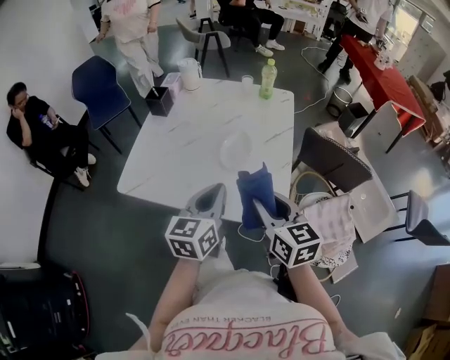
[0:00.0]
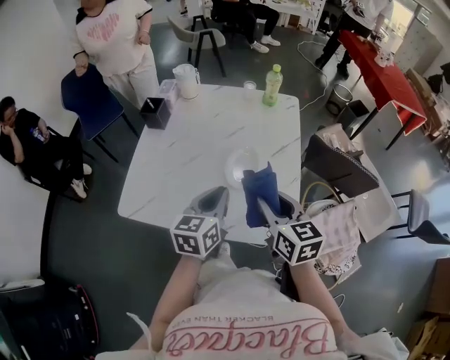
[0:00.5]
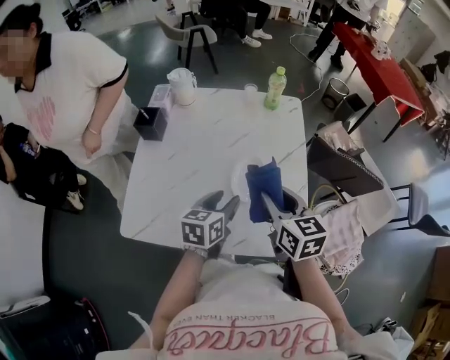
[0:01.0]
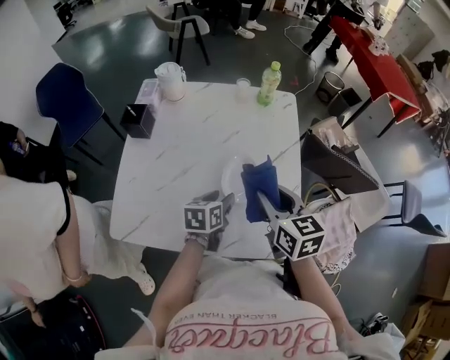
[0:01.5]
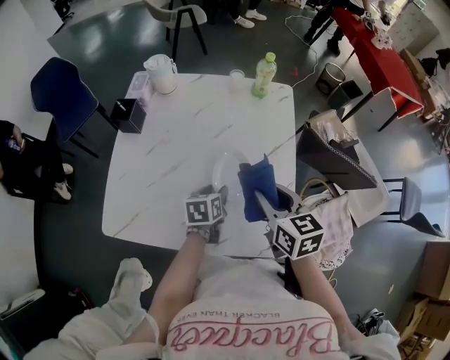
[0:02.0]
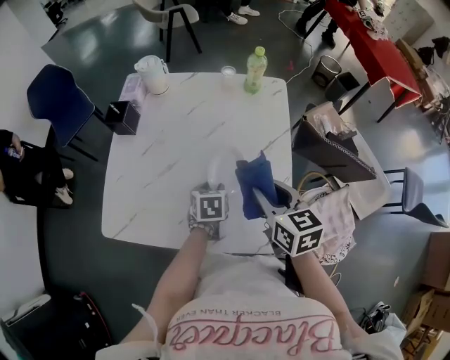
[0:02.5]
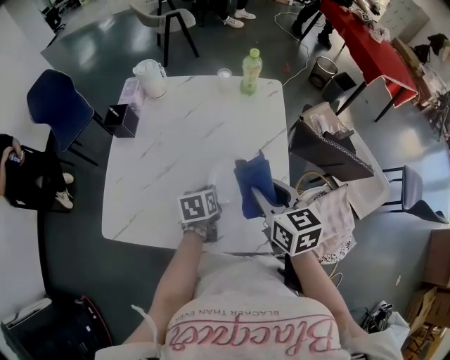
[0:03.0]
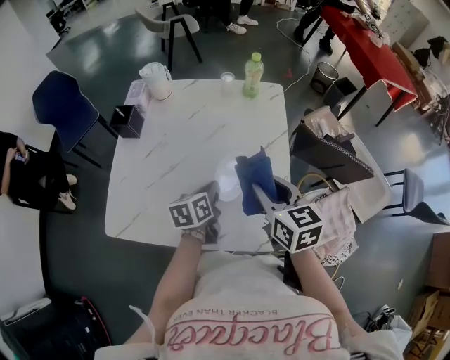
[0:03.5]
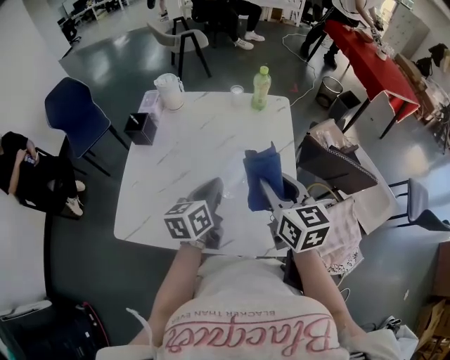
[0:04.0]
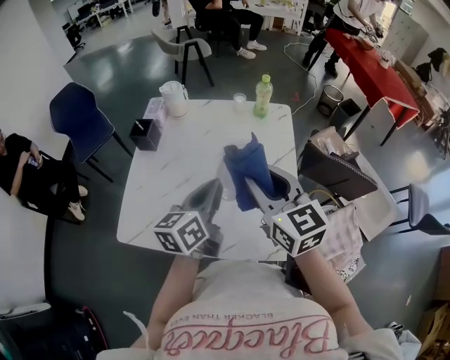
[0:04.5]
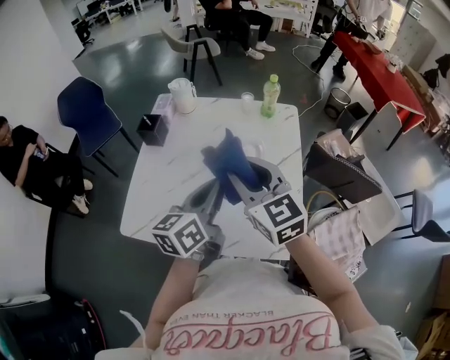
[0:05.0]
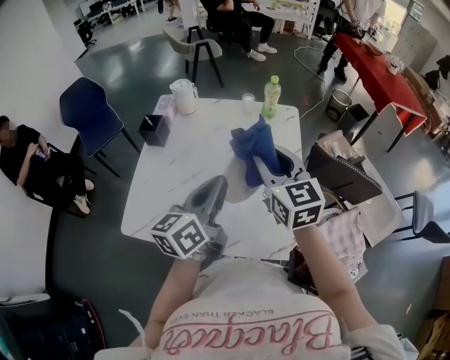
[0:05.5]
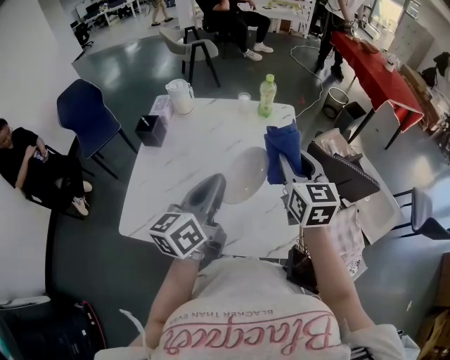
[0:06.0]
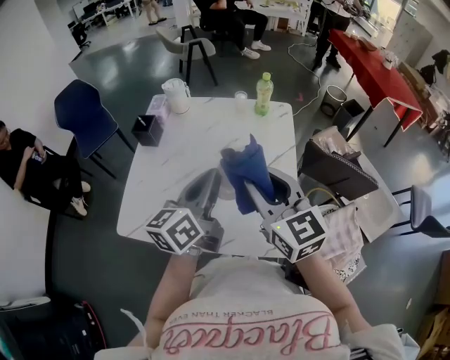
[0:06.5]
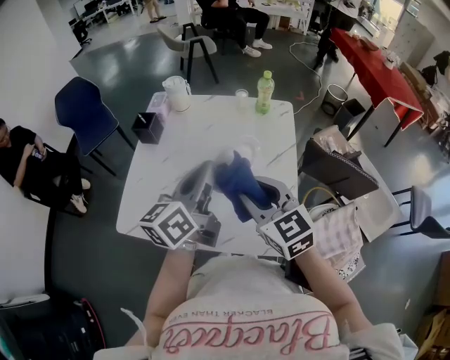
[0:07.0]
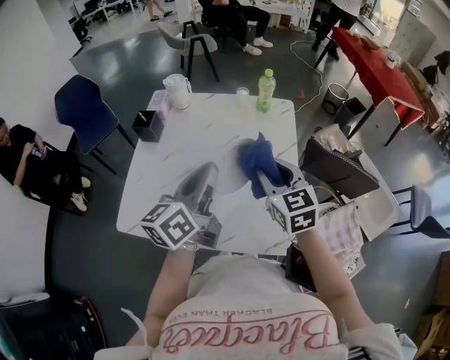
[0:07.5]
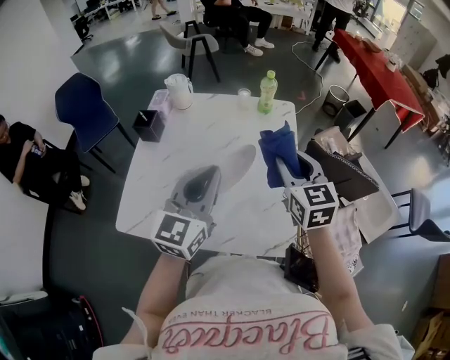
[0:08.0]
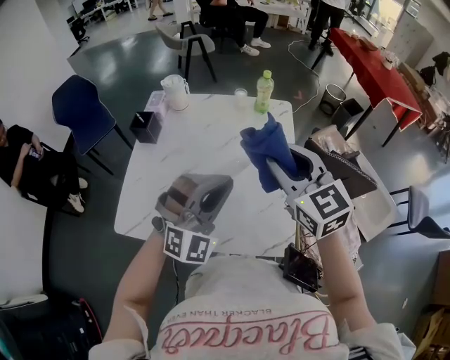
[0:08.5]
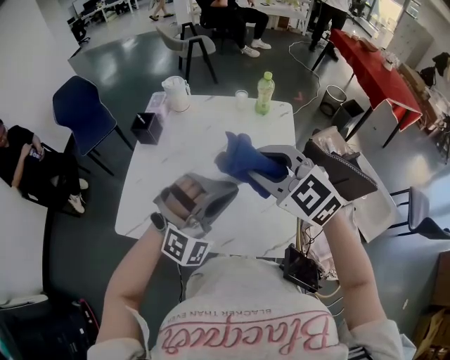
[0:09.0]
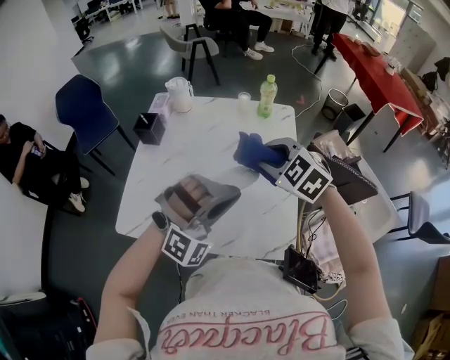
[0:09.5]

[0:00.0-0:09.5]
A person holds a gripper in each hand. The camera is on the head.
0.0 to 2.0 s: The left gripper is displaced downward and forward by some 30 cm, tips its fingers downward by roughly 30 degrees, and opens its fingers. Meanwhile the right gripper shifts approximately 20 cm forward.
2.0 to 4.0 s: The right gripper is displaced upward by roughly 5 cm, while the left gripper moves upward, approximately 15 cm, changes its angle by some 30 degrees, and closes its fingers.
4.0 to 5.5 s: The right gripper goes some 5 cm upward, while the left gripper is displaced upward by approximately 10 cm.
5.5 to 7.5 s: The right gripper goes left and right, some 10 cm each way, reversing 2 times.
7.5 to 9.5 s: The left gripper heads to the right and backward, covering some 10 cm, and rolls clockwise, seen from behind, by about 120 degrees, while the right gripper travels upward and back again, roughly 10 cm each way, and turns by approximately 40 degrees.

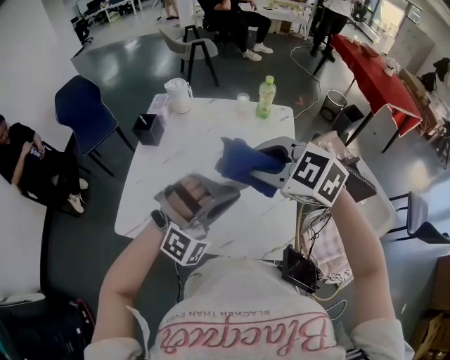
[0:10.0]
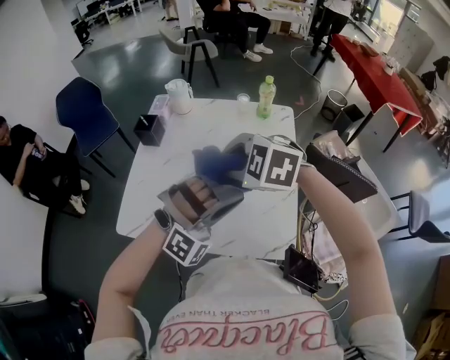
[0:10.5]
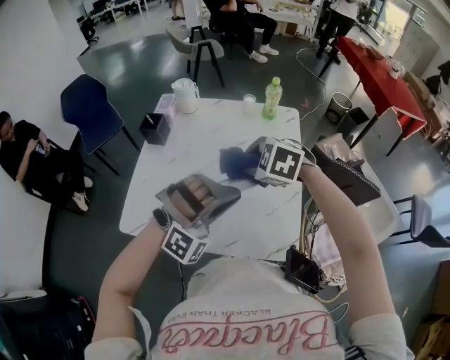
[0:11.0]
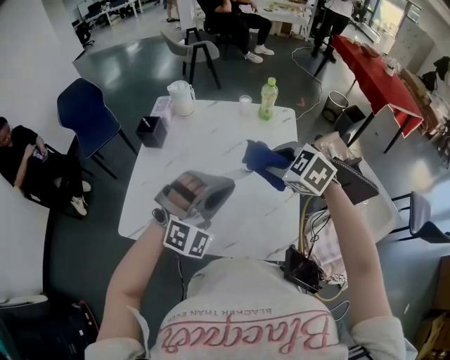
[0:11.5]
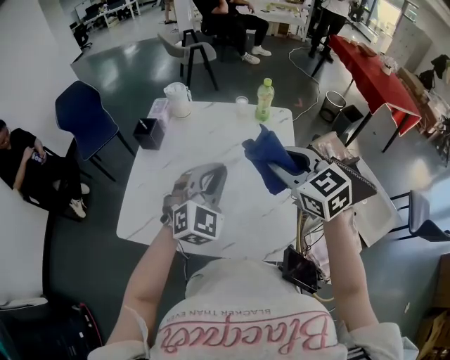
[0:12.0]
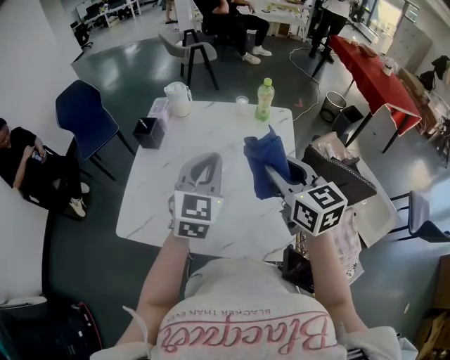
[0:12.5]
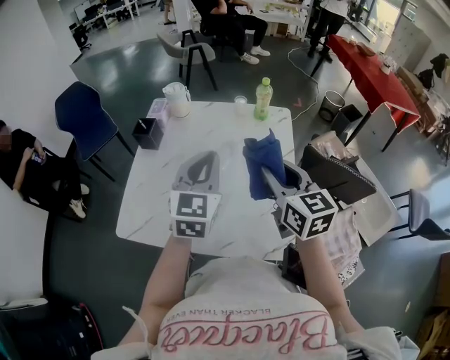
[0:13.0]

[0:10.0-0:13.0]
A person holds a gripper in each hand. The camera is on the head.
10.0 to 11.5 s: The right gripper shifts roughly 10 cm downward and to the right.
11.5 to 13.0 s: The left gripper moves forward, roughly 5 cm, and twists roughly 70 degrees counterclockwise, seen from behind; the right gripper heads upward, covering about 5 cm, and tips its fingers upward by approximately 30 degrees.

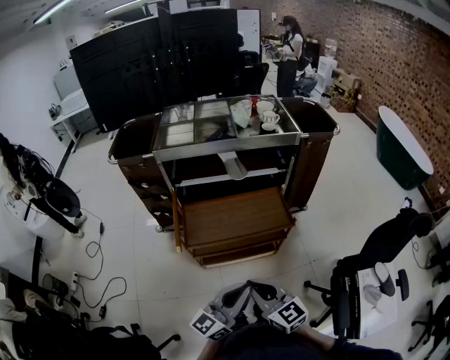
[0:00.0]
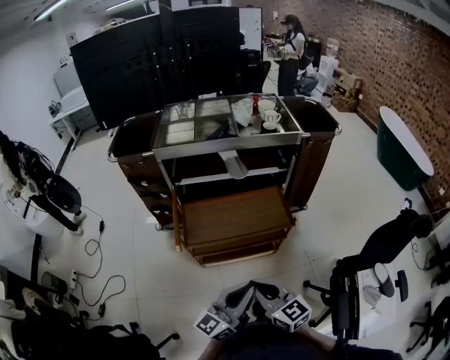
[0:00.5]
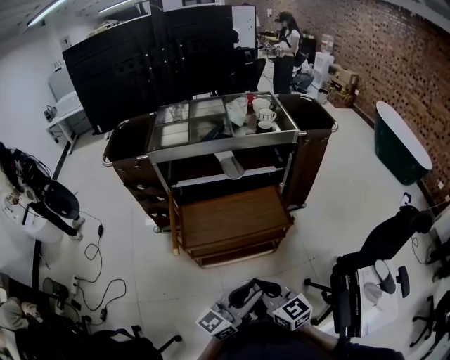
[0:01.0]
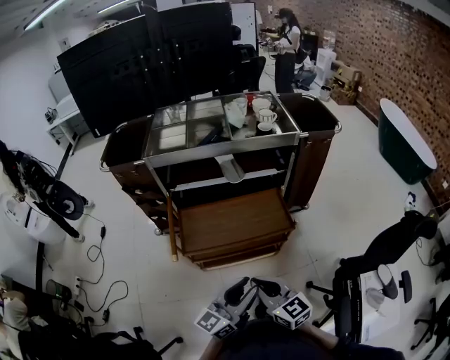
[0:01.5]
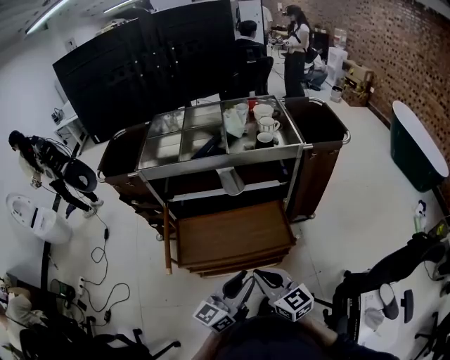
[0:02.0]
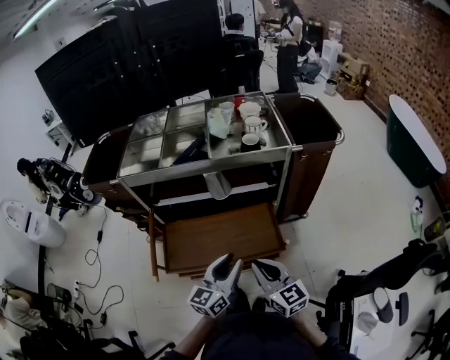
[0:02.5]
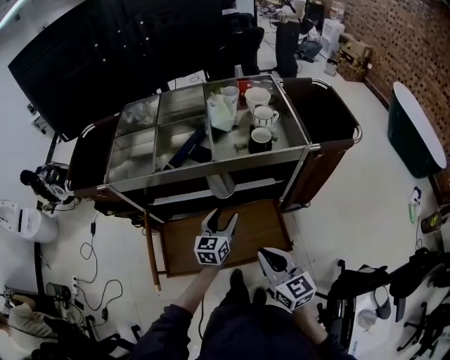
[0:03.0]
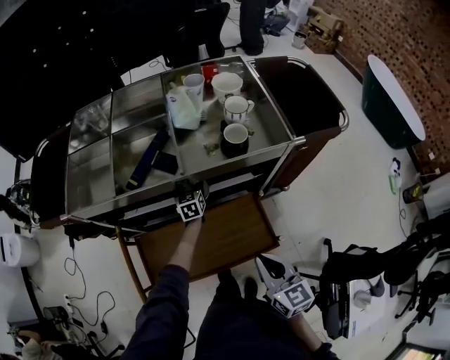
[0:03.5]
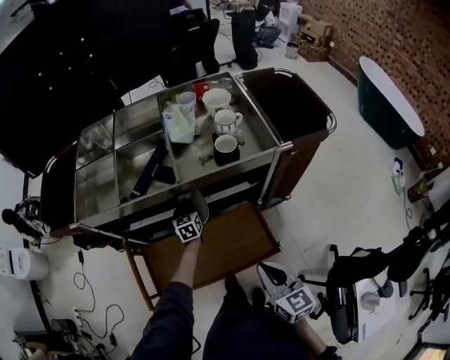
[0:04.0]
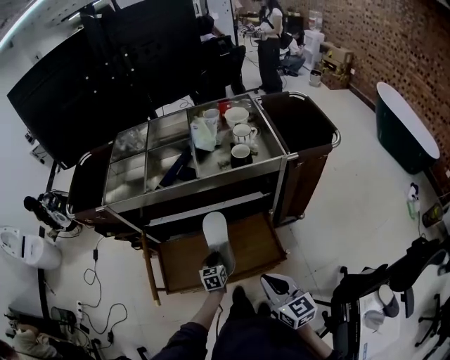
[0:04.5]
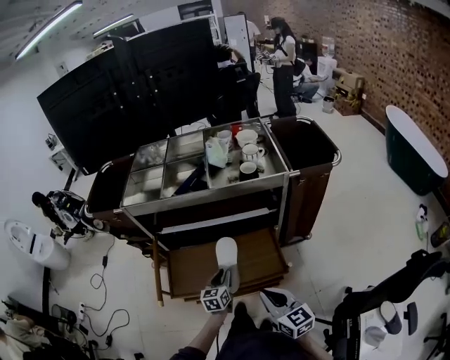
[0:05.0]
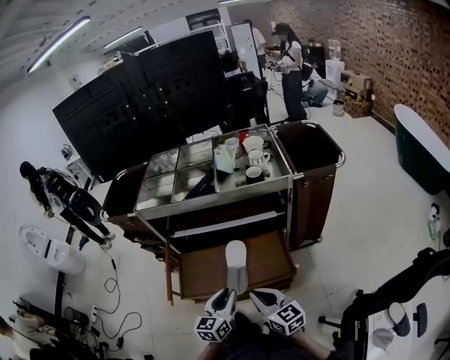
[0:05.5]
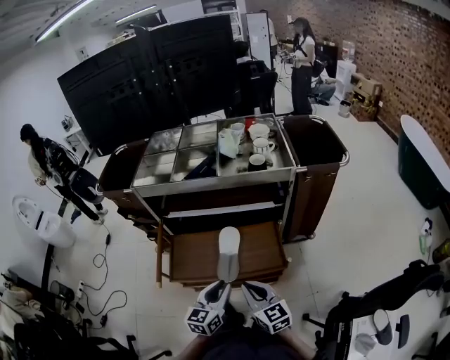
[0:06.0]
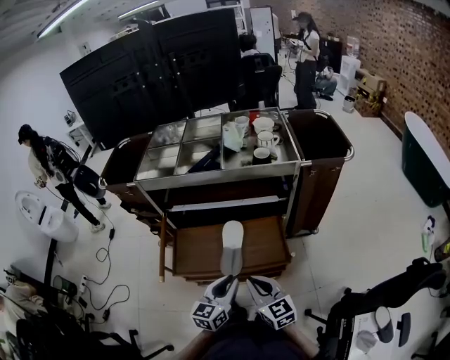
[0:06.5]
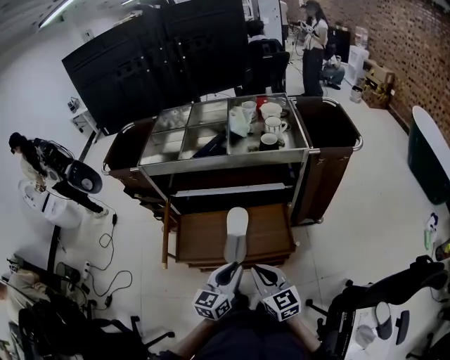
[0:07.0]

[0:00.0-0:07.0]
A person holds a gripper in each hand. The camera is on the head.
0.0 to 2.0 s: Both grippers travel together forward and to the right, approximately 20 cm. The left gripper opens.
2.0 to 3.5 s: The left gripper heads forward and downward, covering some 60 cm, tilts its fingers roughly 40 degrees downward, and opens up. Meanwhile the right gripper heads forward and to the right, covering some 20 cm, and changes its angle by roughly 20 degrees.
3.5 to 5.0 s: The right gripper heads backward, covering about 15 cm. Meanwhile the left gripper is displaced backward by about 35 cm, and closes up.
5.0 to 7.0 s: The left gripper goes approximately 20 cm upward and backward.

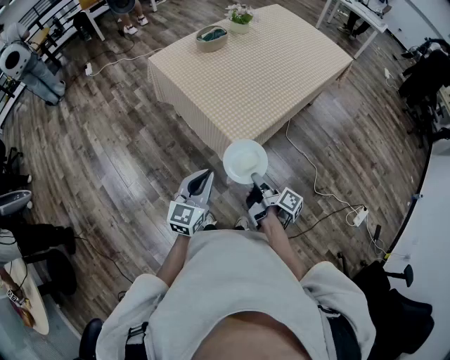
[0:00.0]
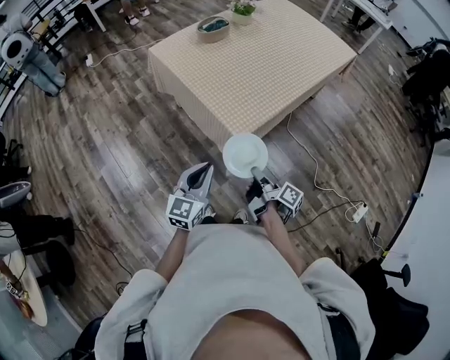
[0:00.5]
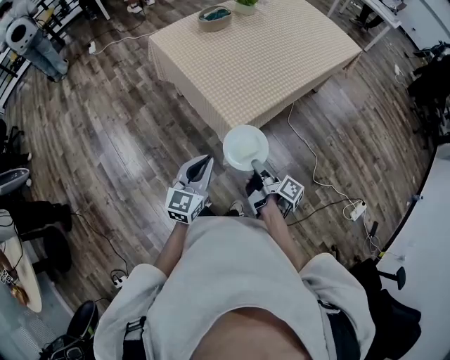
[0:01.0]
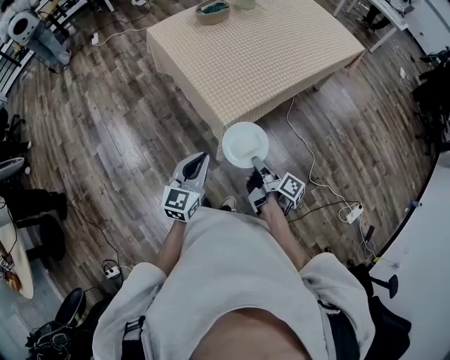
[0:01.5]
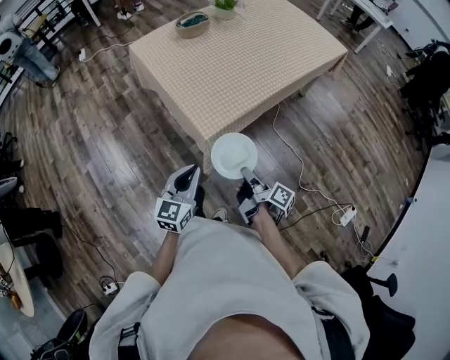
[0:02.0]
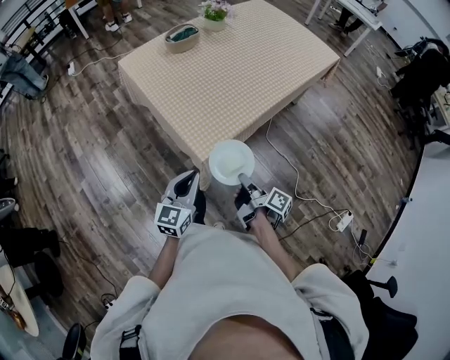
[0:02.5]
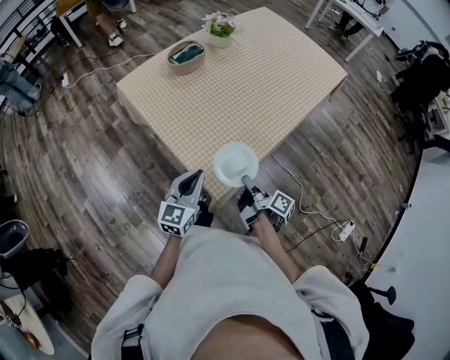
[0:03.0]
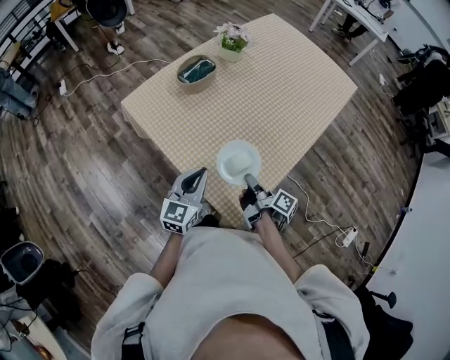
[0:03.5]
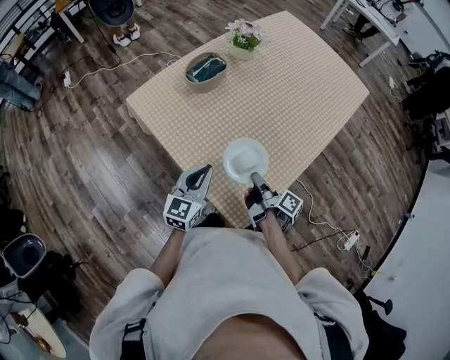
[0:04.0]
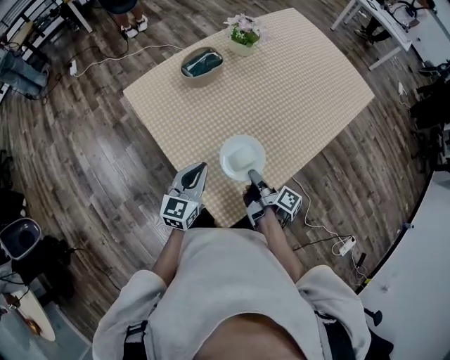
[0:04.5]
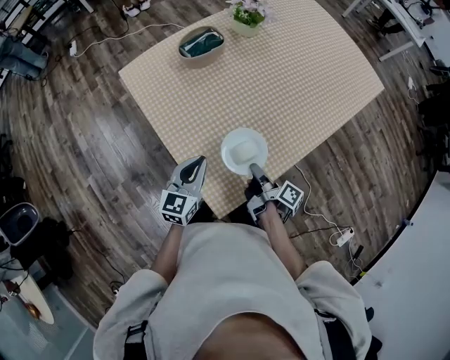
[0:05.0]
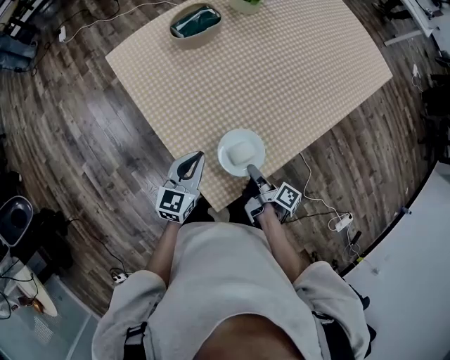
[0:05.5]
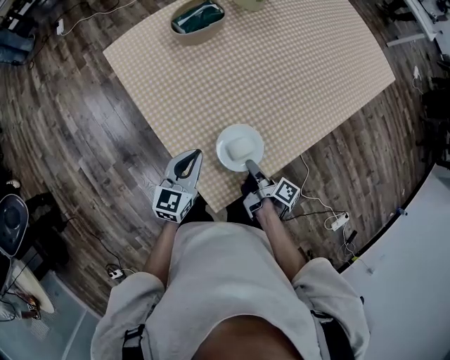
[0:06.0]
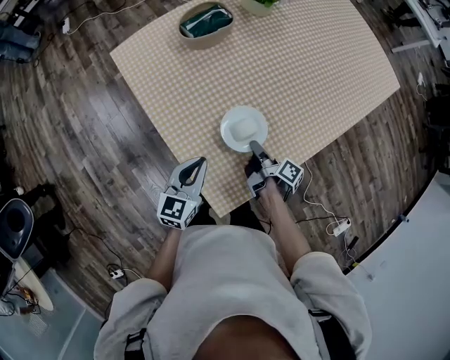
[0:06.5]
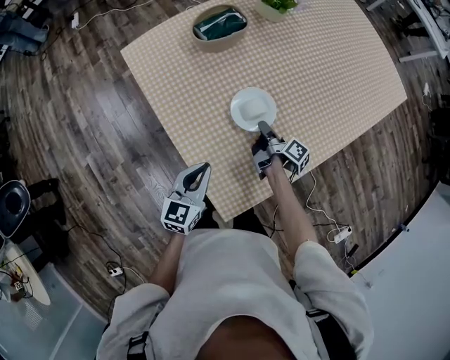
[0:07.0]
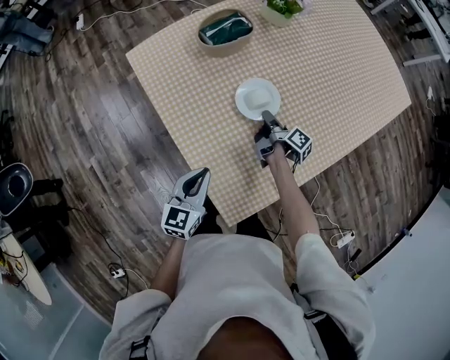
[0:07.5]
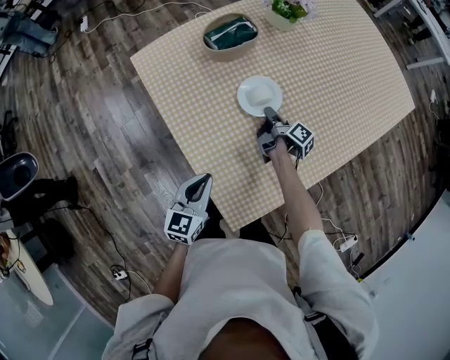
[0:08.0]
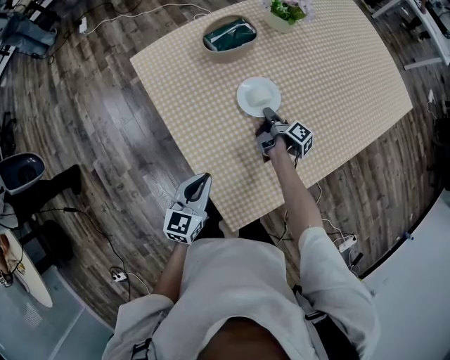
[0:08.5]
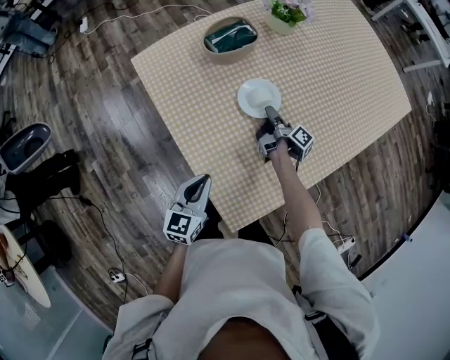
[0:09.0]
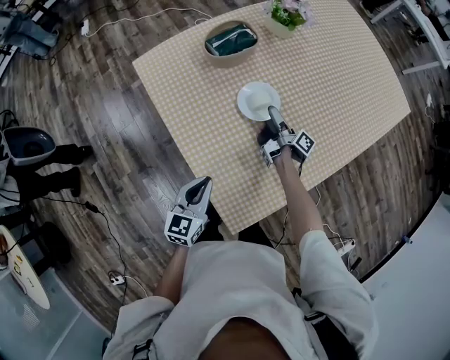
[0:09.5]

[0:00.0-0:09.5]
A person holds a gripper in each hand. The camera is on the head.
0.0 to 2.0 s: The left gripper changes place by approximately 10 cm.
2.0 to 4.0 s: The left gripper ends up some 40 cm from where it was.
4.0 to 5.5 s: The left gripper moves downward, roughly 5 cm.
